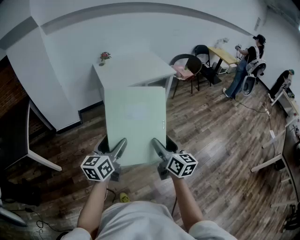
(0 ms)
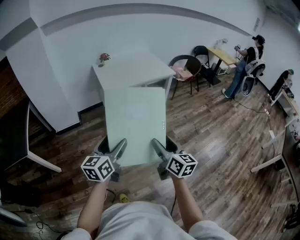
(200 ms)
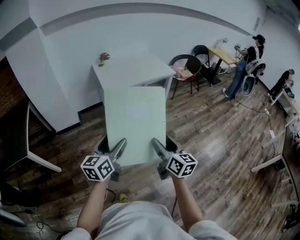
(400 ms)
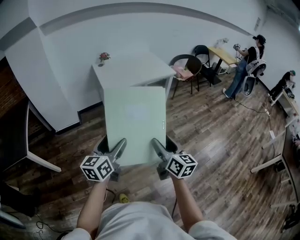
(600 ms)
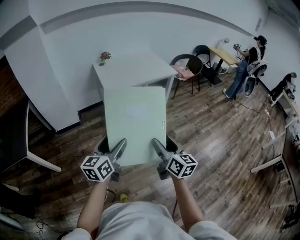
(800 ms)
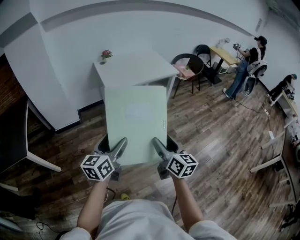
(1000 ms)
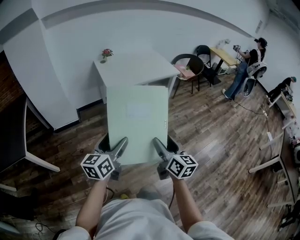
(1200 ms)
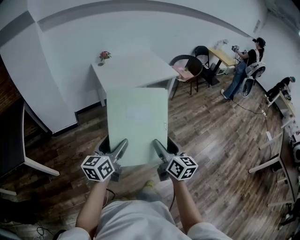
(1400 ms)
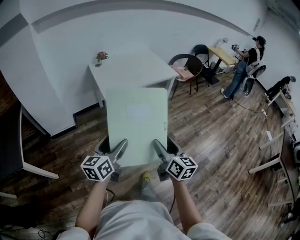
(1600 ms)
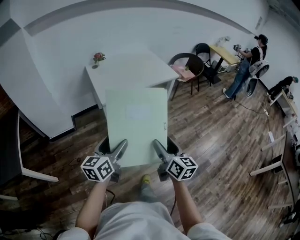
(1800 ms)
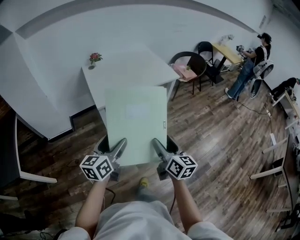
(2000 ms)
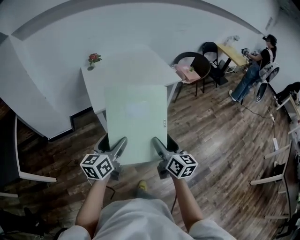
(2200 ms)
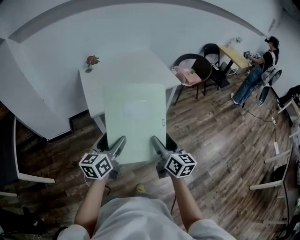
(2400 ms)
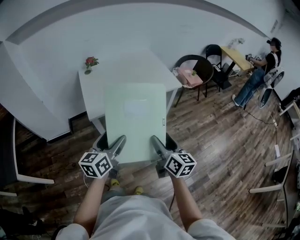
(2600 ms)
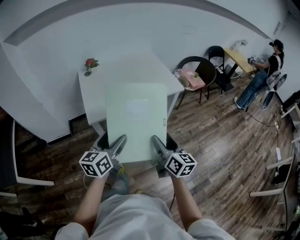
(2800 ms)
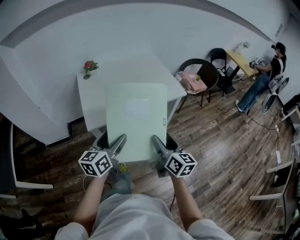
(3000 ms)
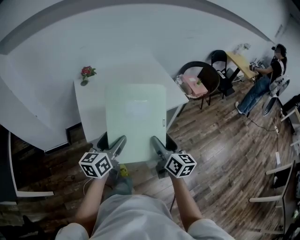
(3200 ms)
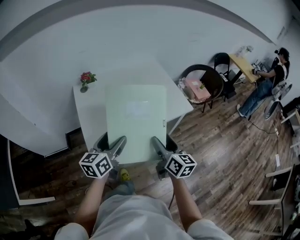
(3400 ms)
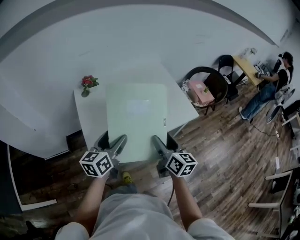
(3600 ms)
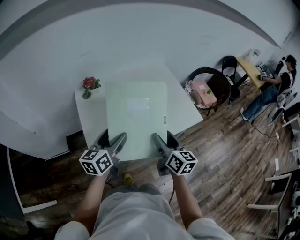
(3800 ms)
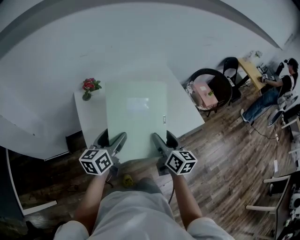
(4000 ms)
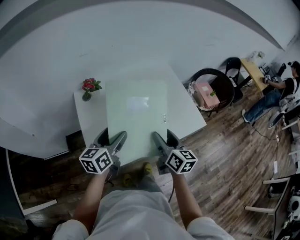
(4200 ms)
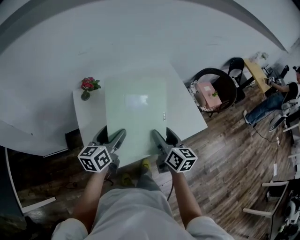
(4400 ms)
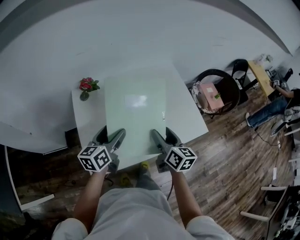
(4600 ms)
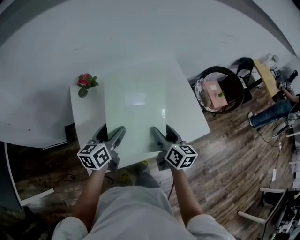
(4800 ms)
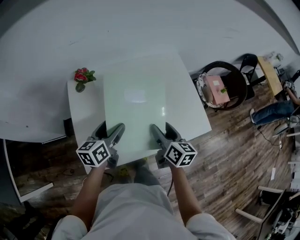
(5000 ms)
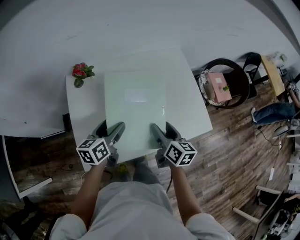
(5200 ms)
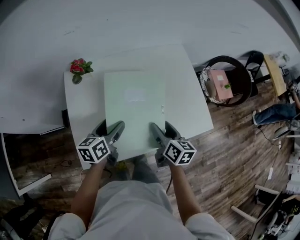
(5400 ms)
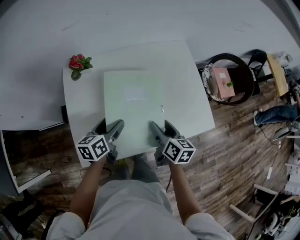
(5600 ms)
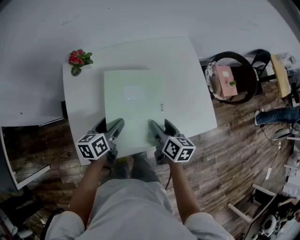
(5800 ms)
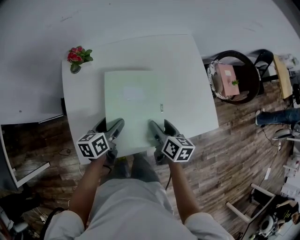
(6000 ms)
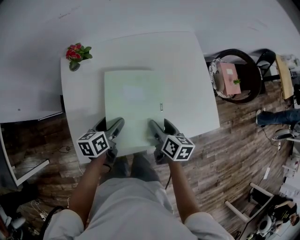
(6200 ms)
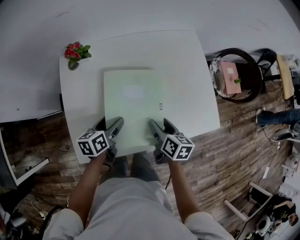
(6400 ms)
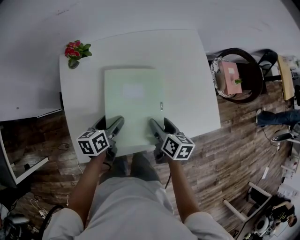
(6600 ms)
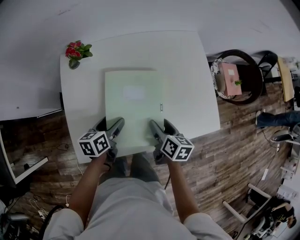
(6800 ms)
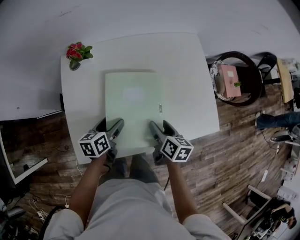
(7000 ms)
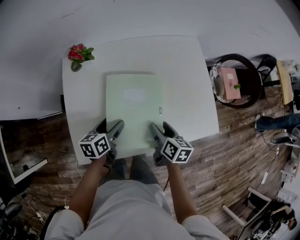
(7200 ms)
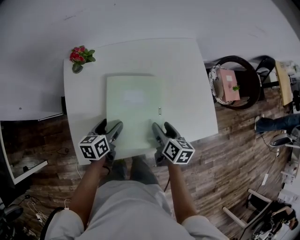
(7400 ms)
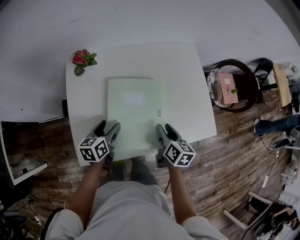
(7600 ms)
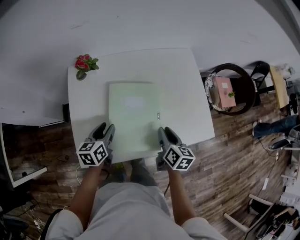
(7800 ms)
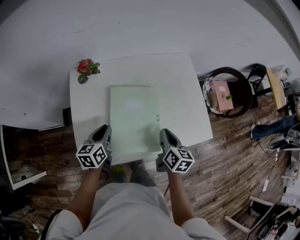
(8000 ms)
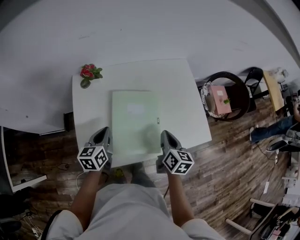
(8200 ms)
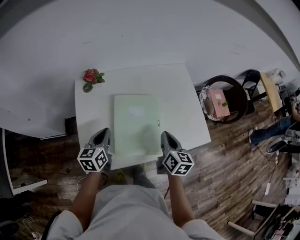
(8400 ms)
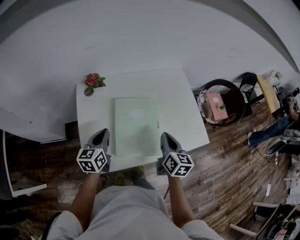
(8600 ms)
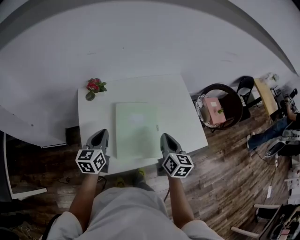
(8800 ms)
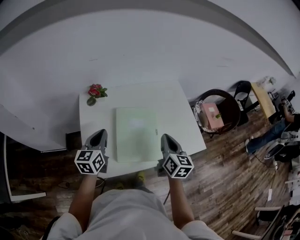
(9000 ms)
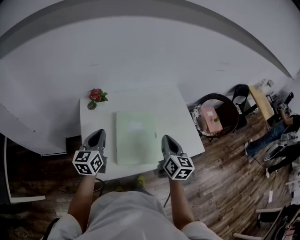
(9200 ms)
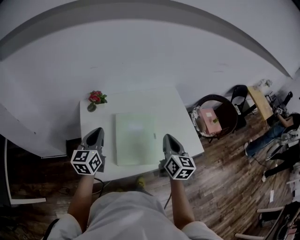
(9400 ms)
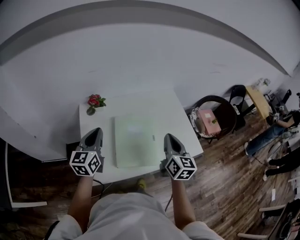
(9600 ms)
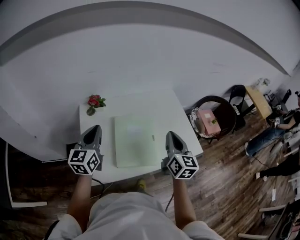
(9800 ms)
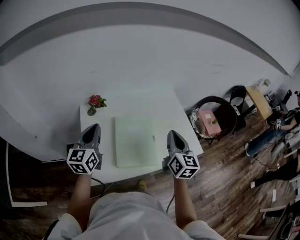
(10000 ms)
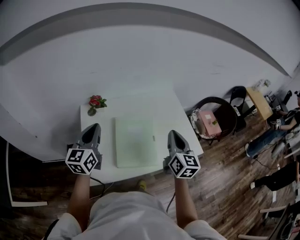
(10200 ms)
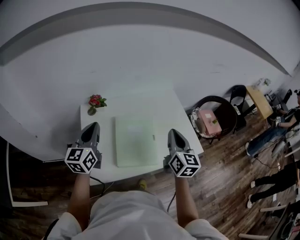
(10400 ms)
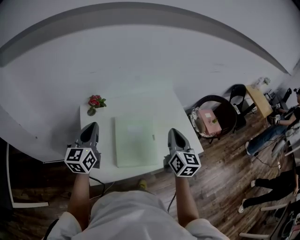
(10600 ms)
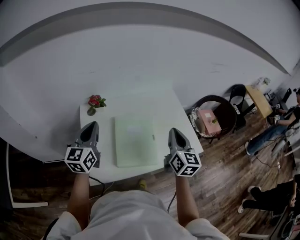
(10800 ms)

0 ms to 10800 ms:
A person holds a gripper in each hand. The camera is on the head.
0 ms to 1600 ms: The grippers both shift forward by approximately 10 cm.
1600 ms to 3000 ms: Both grippers travel together forward, roughly 40 cm.
3000 ms to 4600 ms: The two grippers travel together, forward, some 40 cm.
4600 ms to 6200 ms: Both grippers move downward, approximately 15 cm. The left gripper changes its angle by roughly 20 degrees; the right gripper rotates about 20 degrees.
6200 ms to 7800 ms: The right gripper closes; the left gripper moves approximately 5 cm, and closes up.
7800 ms to 9200 ms: Both grippers travel together upward, about 15 cm. The right gripper swivels about 20 degrees, and closes, while the left gripper rotates roughly 30 degrees, and closes up.
9200 ms to 10800 ms: The grippers both shift upward by some 10 cm.

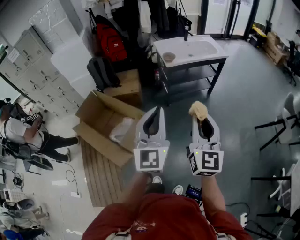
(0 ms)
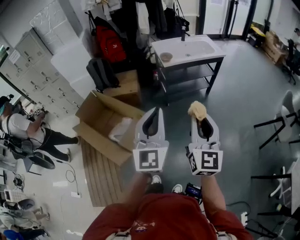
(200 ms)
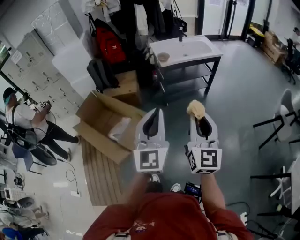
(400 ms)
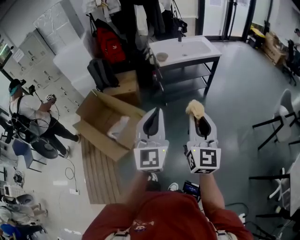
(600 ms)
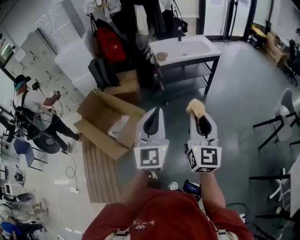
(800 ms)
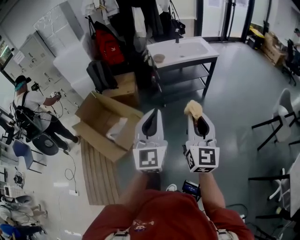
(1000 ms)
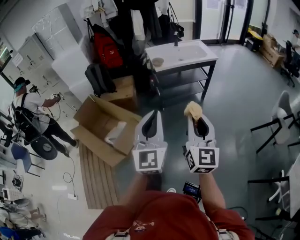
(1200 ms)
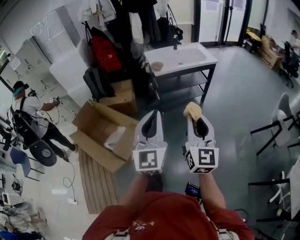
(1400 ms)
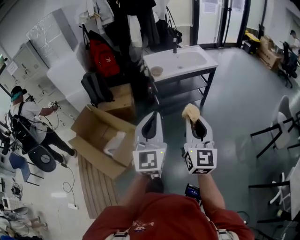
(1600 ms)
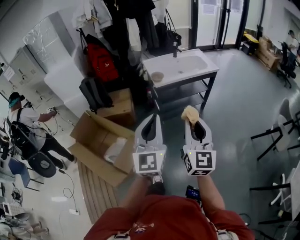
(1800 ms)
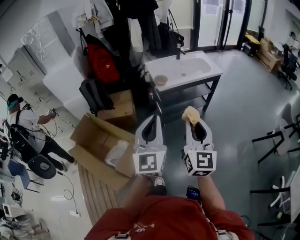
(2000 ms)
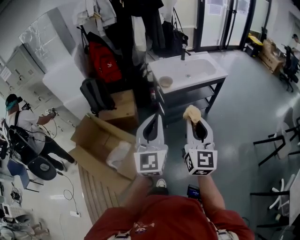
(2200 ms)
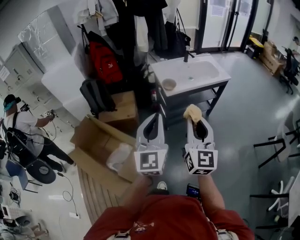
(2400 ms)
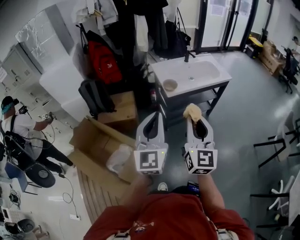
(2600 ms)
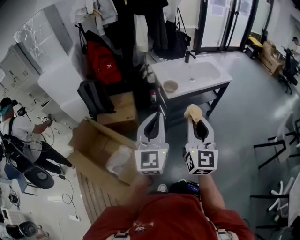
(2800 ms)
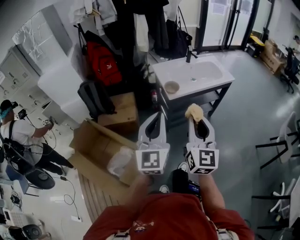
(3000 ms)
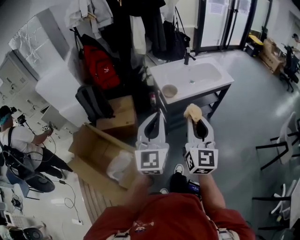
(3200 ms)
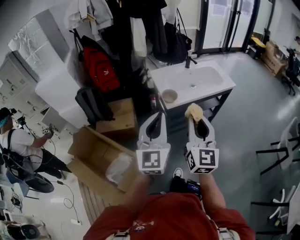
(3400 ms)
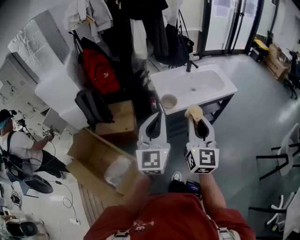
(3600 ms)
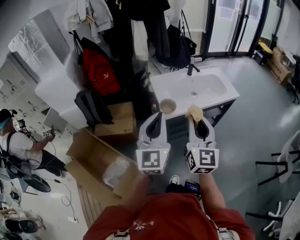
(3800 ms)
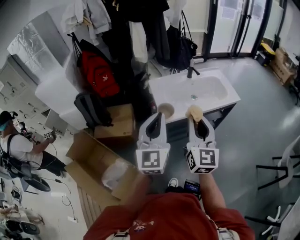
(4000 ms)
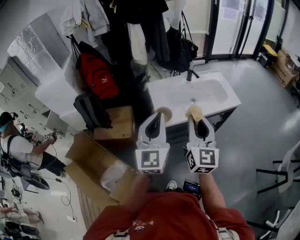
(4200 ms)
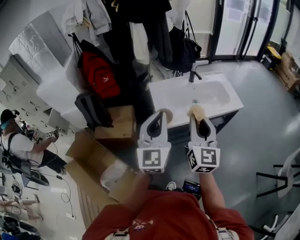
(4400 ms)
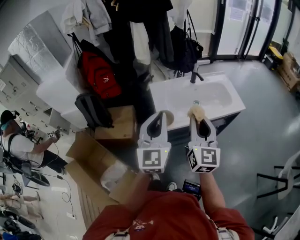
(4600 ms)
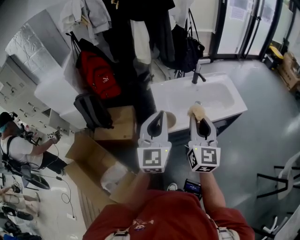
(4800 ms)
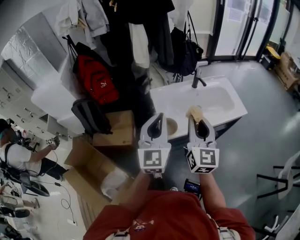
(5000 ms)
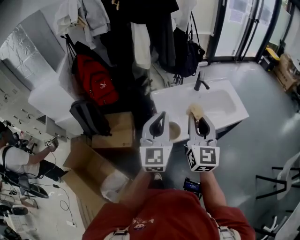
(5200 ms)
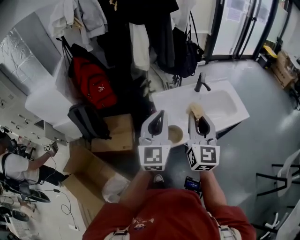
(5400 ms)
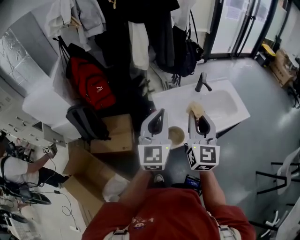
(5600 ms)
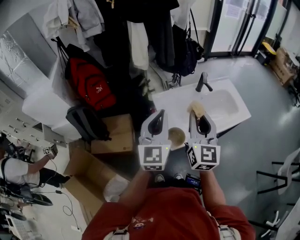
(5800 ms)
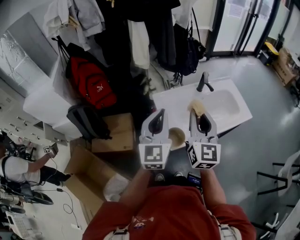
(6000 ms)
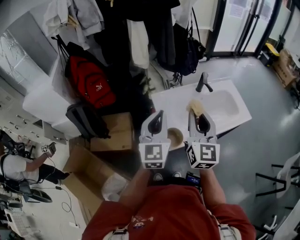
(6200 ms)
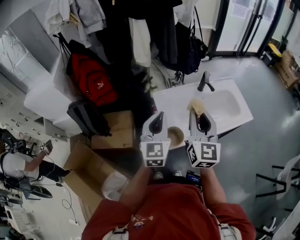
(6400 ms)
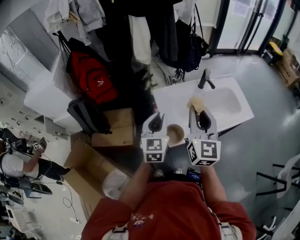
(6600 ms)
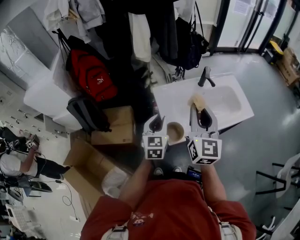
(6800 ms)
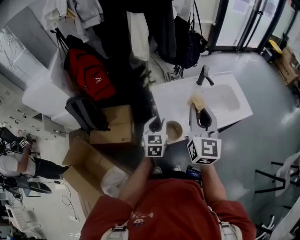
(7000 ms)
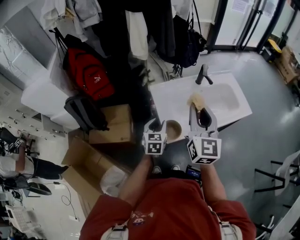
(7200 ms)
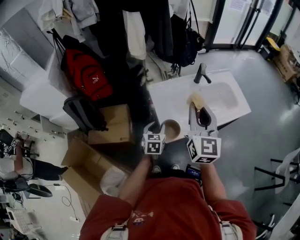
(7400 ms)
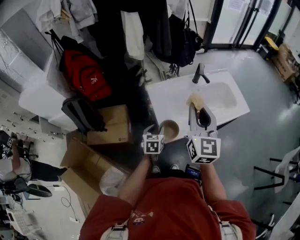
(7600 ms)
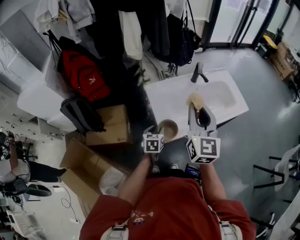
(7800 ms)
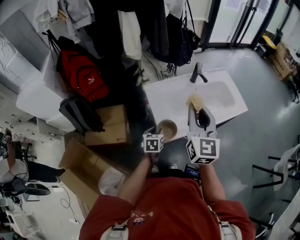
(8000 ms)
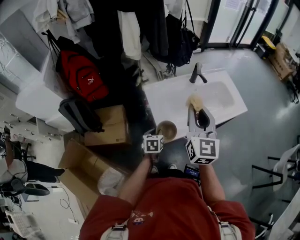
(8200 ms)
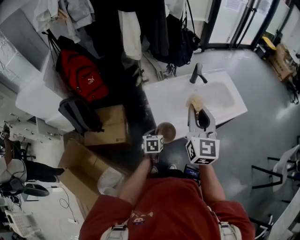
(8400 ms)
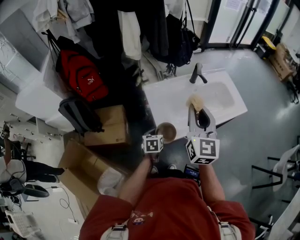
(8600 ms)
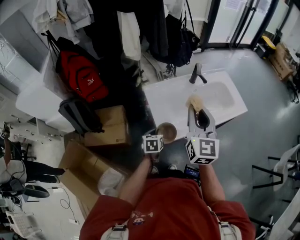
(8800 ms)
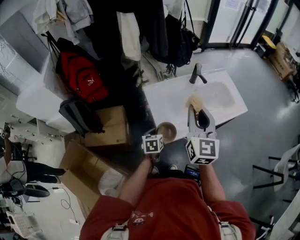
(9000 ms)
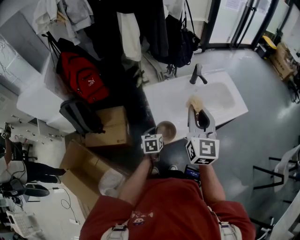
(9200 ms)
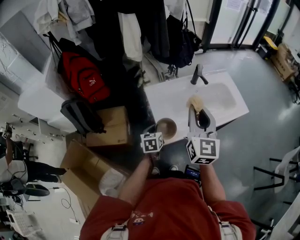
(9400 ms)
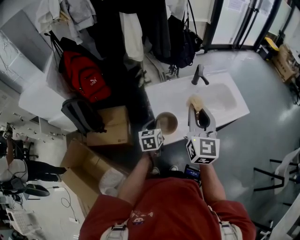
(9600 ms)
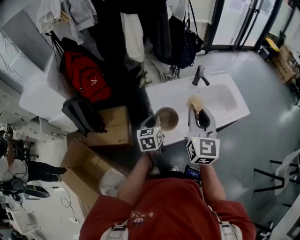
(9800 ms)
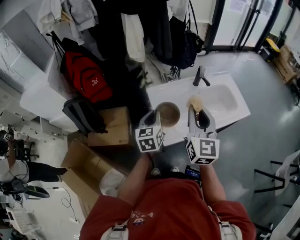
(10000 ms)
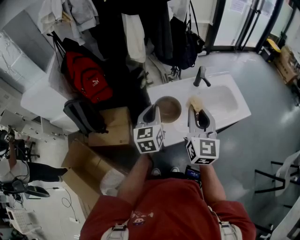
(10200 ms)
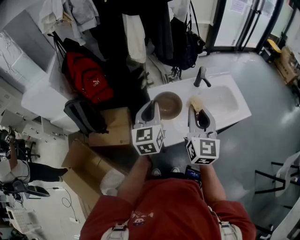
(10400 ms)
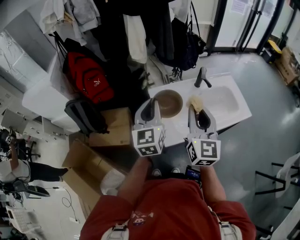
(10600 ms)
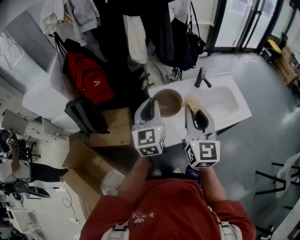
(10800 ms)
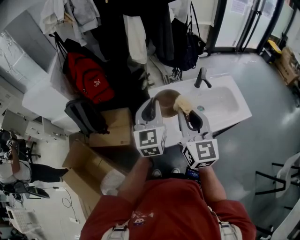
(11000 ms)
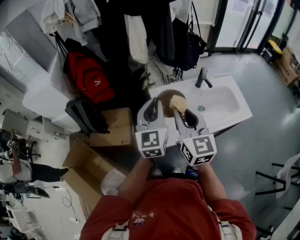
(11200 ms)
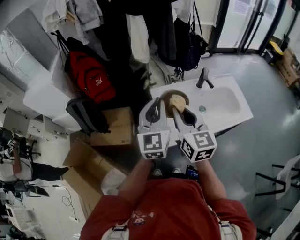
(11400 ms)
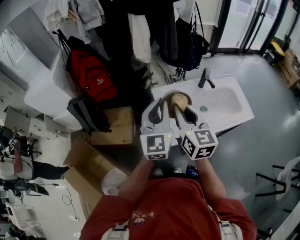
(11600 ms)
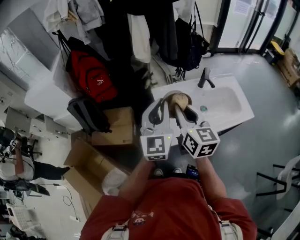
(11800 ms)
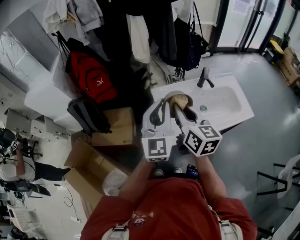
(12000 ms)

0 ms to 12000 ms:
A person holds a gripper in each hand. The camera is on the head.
0 ms to 1600 ms: Both grippers move to the right, roughly 10 cm. The left gripper reaches about 10 cm backward, then returns.
1600 ms to 3000 ms: The two grippers go some 30 cm forward and to the left.
3000 ms to 4400 ms: The grippers both shift forward and to the right by about 30 cm.
4400 ms to 6000 ms: Both grippers move forward and to the left, about 20 cm.
6000 ms to 7600 ms: The left gripper shifts about 30 cm downward, tips its fingers downward by approximately 40 degrees, and opens up.
7600 ms to 9000 ms: The left gripper closes.
9000 ms to 10400 ms: The left gripper travels upward by approximately 25 cm, and angles its fingers upward, by approximately 40 degrees.
10400 ms to 12000 ms: The left gripper goes about 5 cm upward, and changes its angle by roughly 20 degrees. Meanwhile the right gripper shifts approximately 5 cm to the left, and swivels roughly 30 degrees.

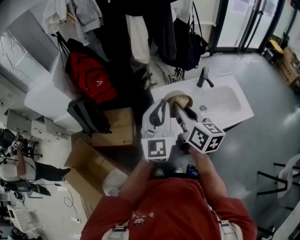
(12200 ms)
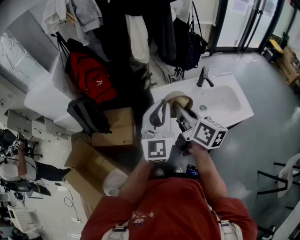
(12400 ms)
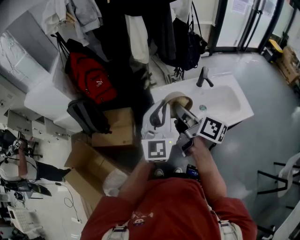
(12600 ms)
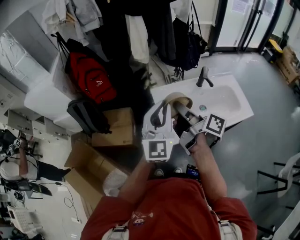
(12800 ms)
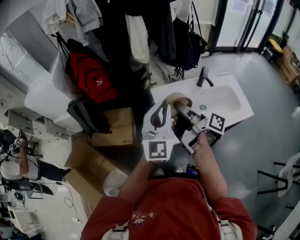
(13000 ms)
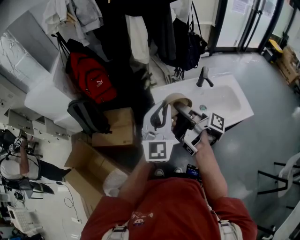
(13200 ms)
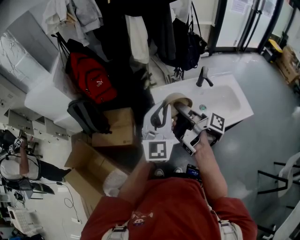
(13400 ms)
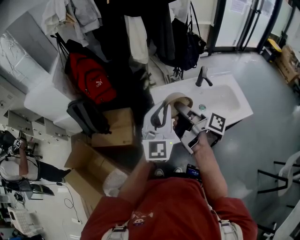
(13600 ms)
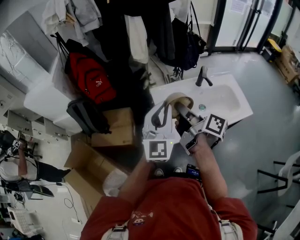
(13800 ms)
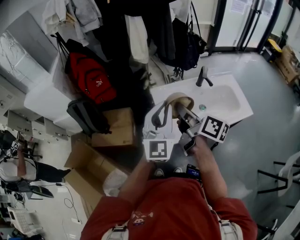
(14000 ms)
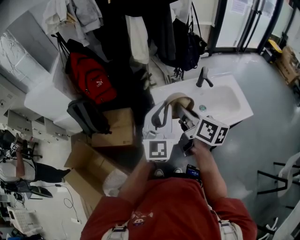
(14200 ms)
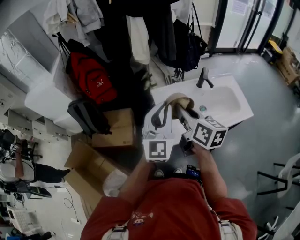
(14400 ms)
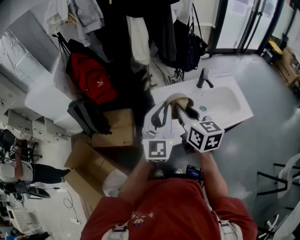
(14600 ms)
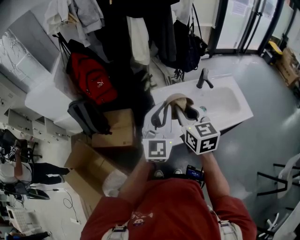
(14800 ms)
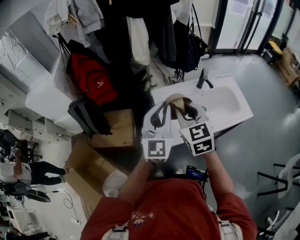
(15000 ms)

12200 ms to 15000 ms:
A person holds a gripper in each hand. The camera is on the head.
12200 ms to 13600 ms: The right gripper twists approximately 50 degrees clockwise, seen from behind.
13600 ms to 15000 ms: The right gripper rolls counterclockwise, seen from behind, by roughly 90 degrees.
